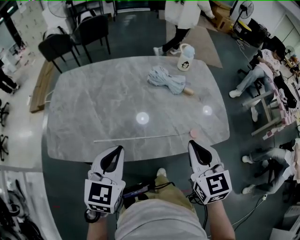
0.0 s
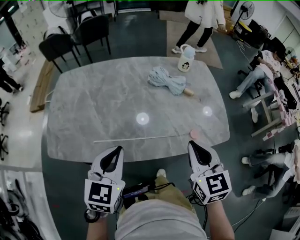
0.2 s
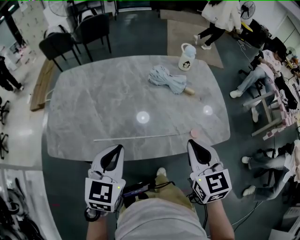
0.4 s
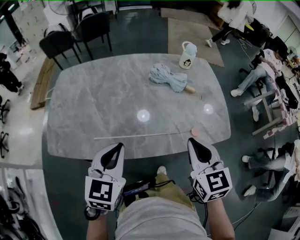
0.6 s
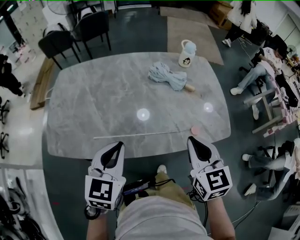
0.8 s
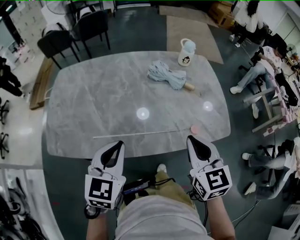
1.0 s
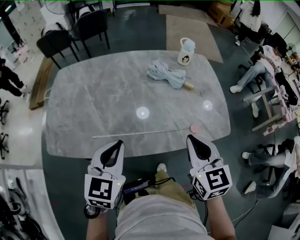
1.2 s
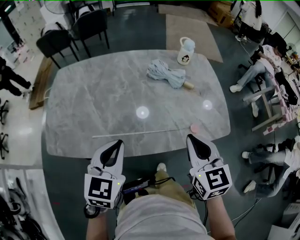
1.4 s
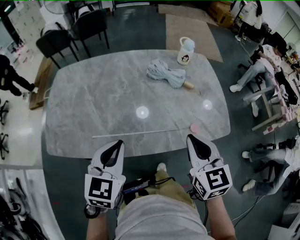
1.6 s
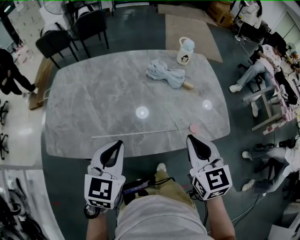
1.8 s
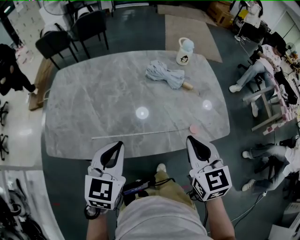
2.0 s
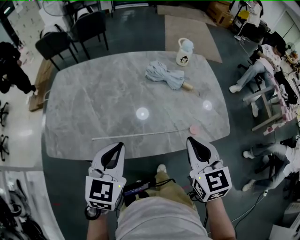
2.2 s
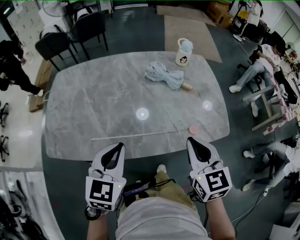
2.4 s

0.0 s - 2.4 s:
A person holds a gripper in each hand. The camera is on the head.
0.0 s - 1.2 s: Both grippers stay about where they are.
1.2 s - 2.4 s: The two grippers keep their place.

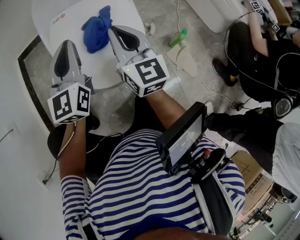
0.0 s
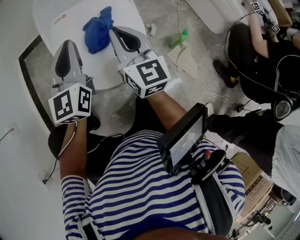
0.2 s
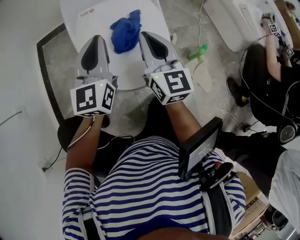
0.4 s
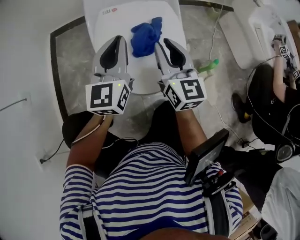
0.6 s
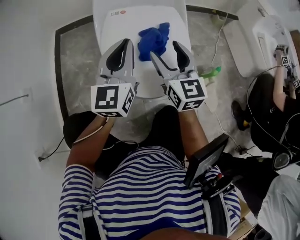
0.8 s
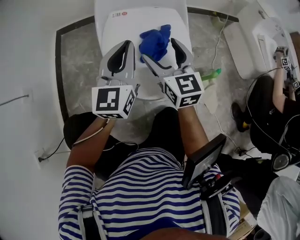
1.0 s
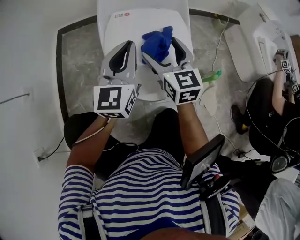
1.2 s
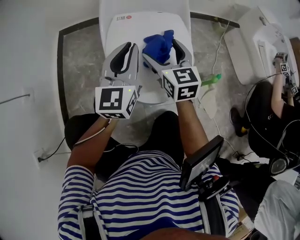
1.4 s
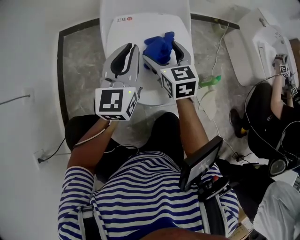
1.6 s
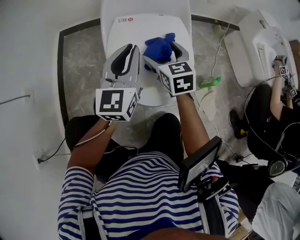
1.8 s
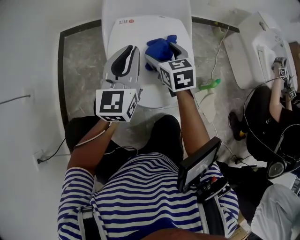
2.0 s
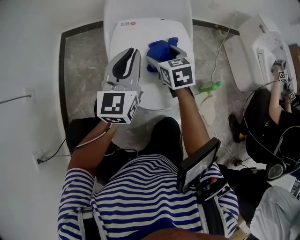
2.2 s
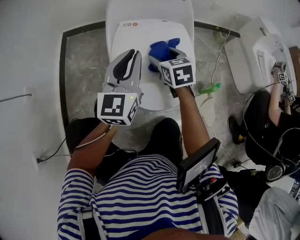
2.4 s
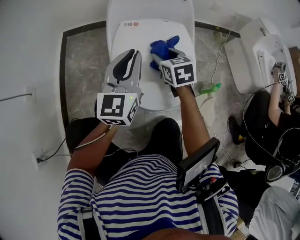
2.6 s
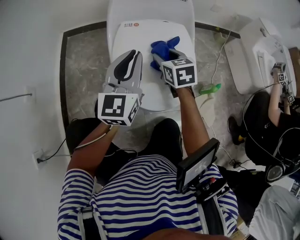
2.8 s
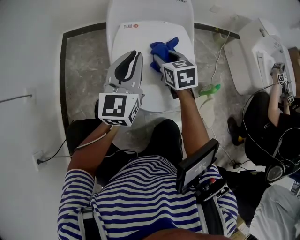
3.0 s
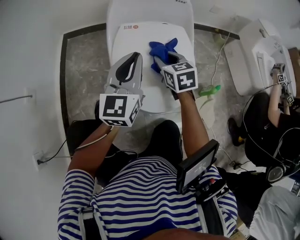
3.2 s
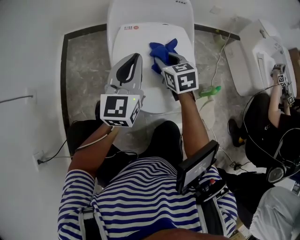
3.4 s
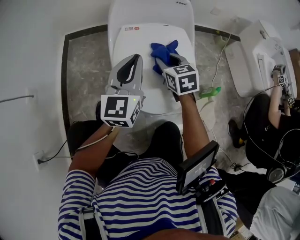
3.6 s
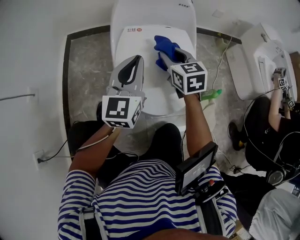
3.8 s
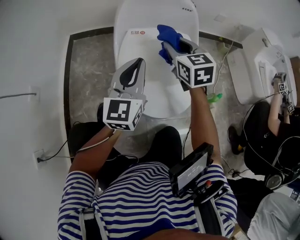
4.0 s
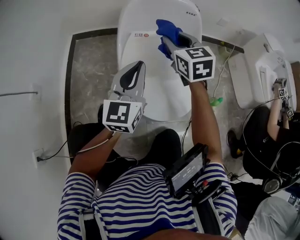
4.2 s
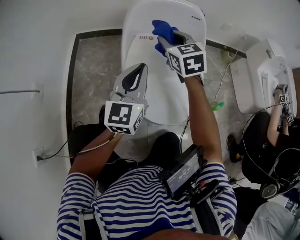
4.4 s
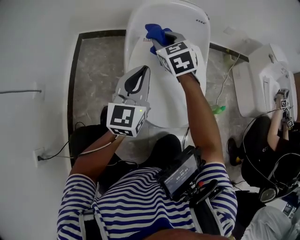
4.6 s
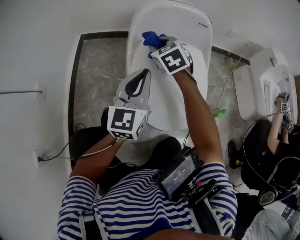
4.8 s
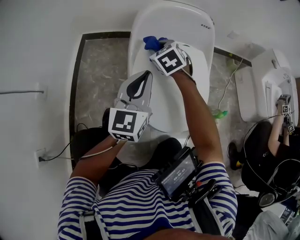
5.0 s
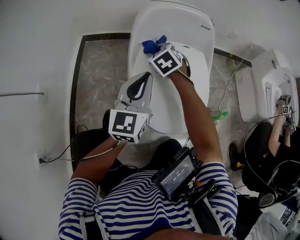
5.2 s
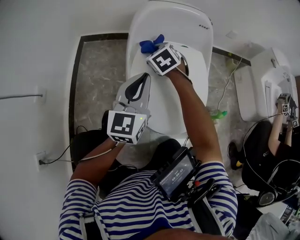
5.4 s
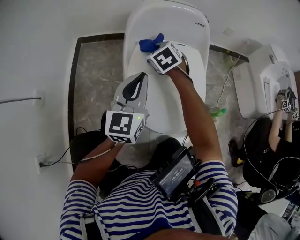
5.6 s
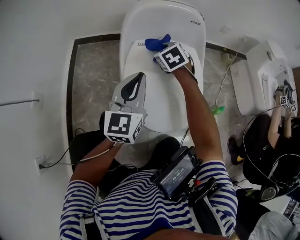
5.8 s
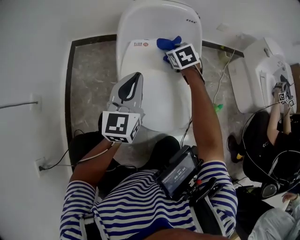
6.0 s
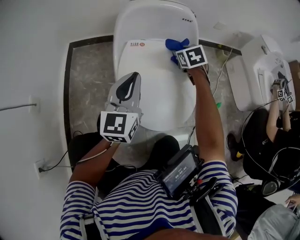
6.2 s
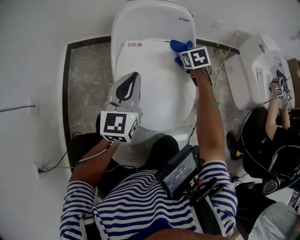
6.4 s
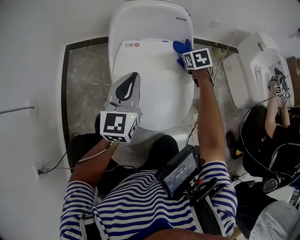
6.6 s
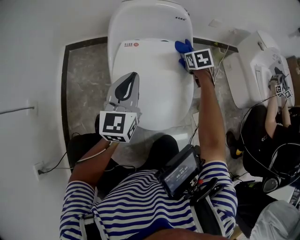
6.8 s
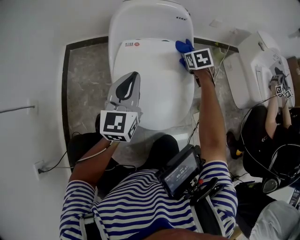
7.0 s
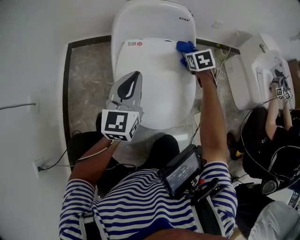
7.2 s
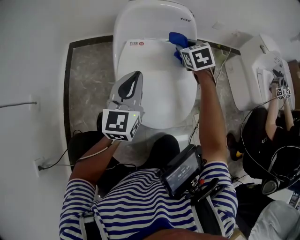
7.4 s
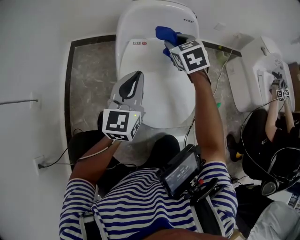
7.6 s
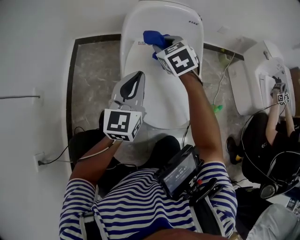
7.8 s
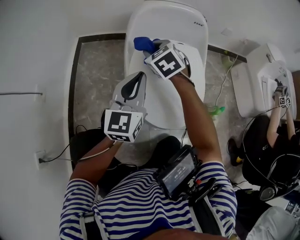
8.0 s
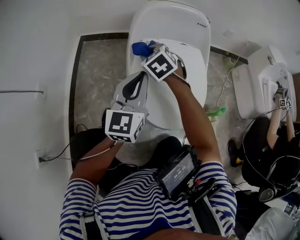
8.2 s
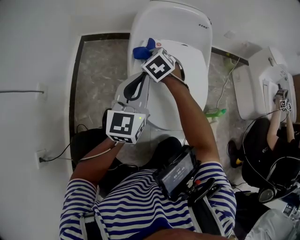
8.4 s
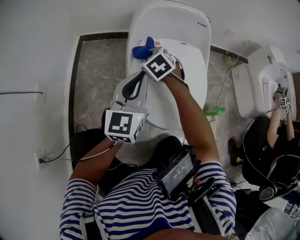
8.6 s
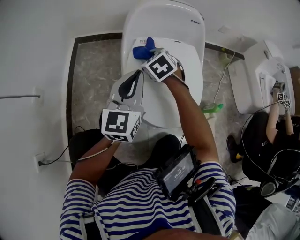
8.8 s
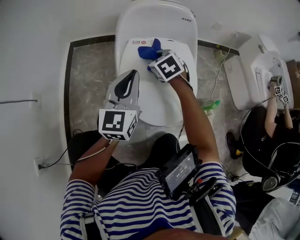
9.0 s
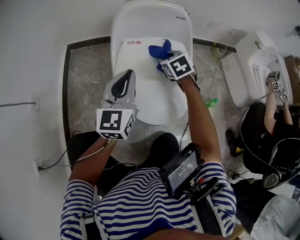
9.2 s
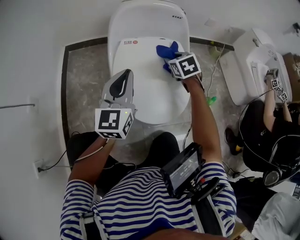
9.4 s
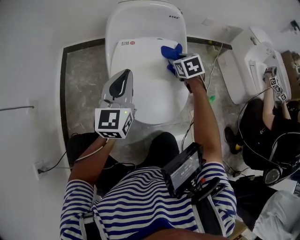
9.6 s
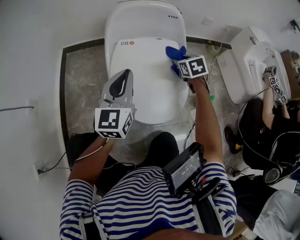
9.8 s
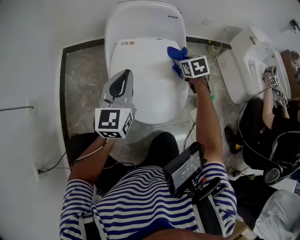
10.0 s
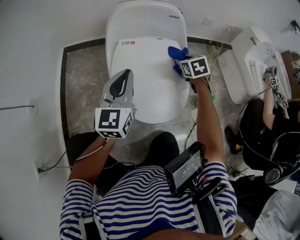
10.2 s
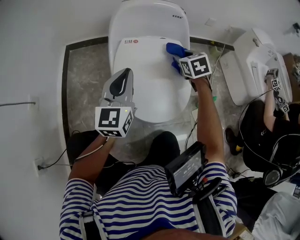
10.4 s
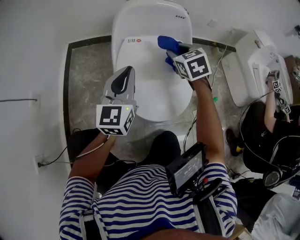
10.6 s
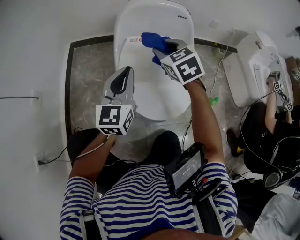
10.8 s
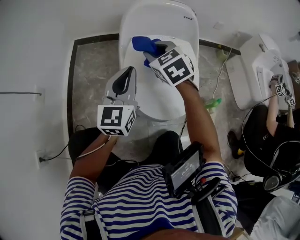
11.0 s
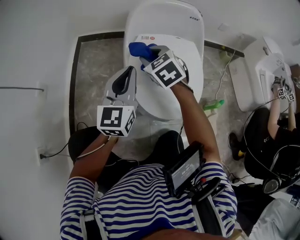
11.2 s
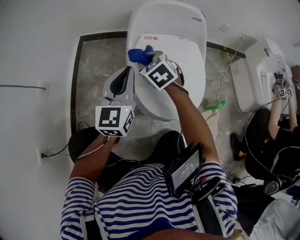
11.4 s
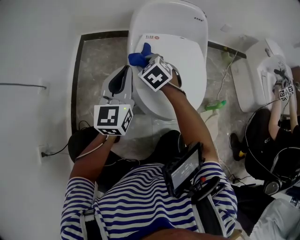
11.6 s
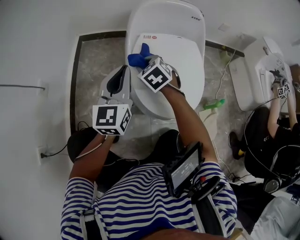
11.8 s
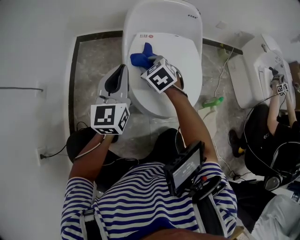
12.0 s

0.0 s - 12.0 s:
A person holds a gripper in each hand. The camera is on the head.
0.0 s - 1.6 s: The right gripper heads forward and to the left, covering some 10 cm, changes its angle by approximately 30 degrees, and opens.
1.6 s - 3.0 s: The right gripper closes its fingers.
3.0 s - 4.4 s: The right gripper travels upward, forward and to the left by some 15 cm.
4.4 s - 6.0 s: The right gripper goes approximately 15 cm downward and to the right, and changes its angle by approximately 20 degrees.
6.0 s - 7.6 s: The right gripper travels upward by approximately 10 cm, and goes to the right and returns, roughly 15 cm each way.
7.6 s - 9.0 s: The right gripper goes approximately 10 cm downward and to the left.
9.0 s - 10.4 s: The right gripper shifts roughly 15 cm to the right.
10.4 s - 12.0 s: The left gripper goes about 5 cm to the left. Meanwhile the right gripper shifts about 20 cm to the left, and rotates some 20 degrees.

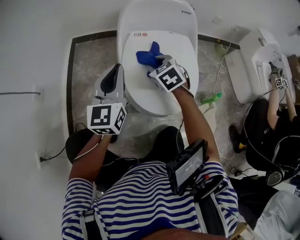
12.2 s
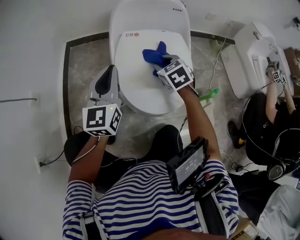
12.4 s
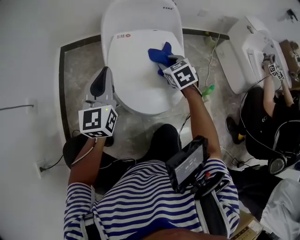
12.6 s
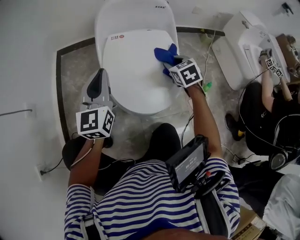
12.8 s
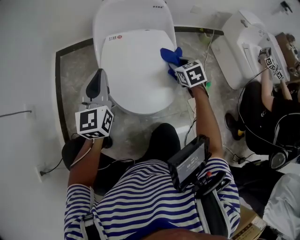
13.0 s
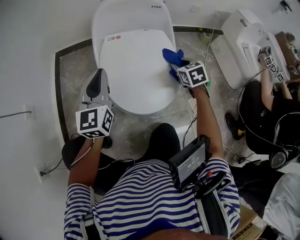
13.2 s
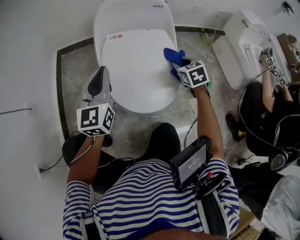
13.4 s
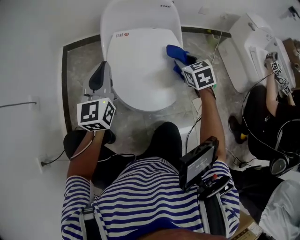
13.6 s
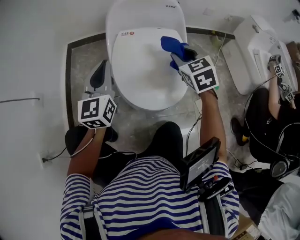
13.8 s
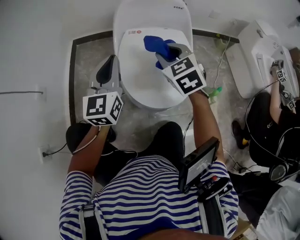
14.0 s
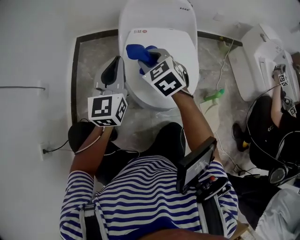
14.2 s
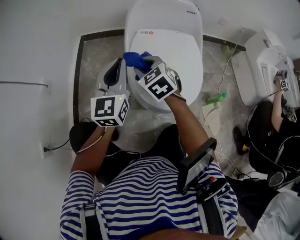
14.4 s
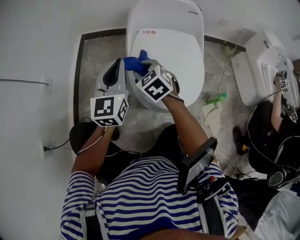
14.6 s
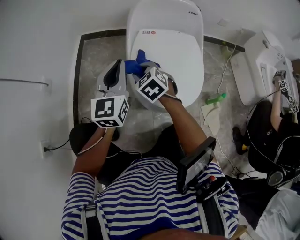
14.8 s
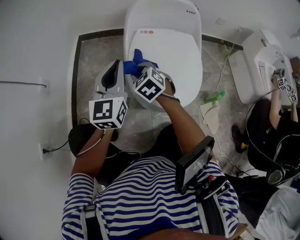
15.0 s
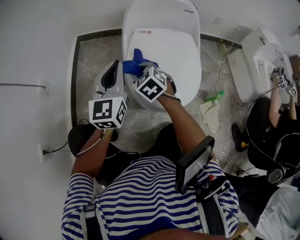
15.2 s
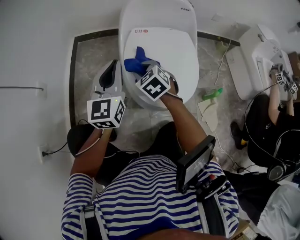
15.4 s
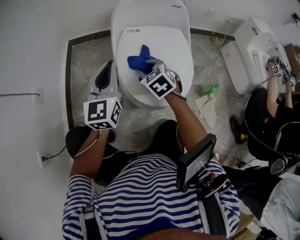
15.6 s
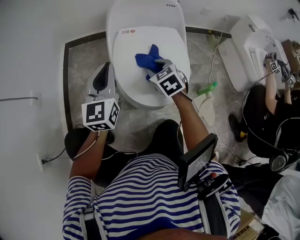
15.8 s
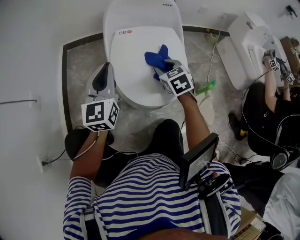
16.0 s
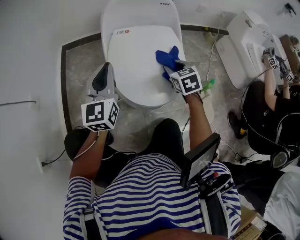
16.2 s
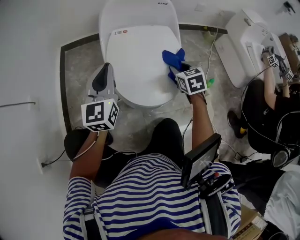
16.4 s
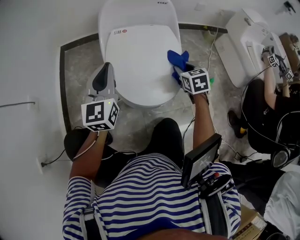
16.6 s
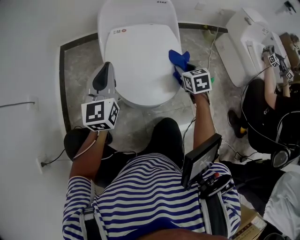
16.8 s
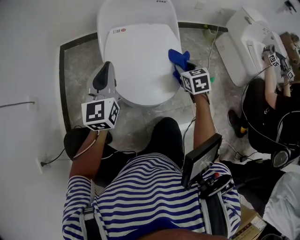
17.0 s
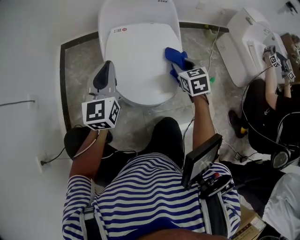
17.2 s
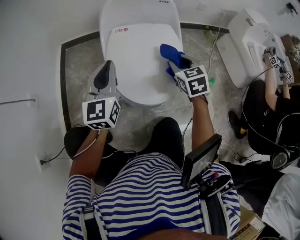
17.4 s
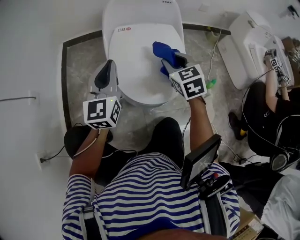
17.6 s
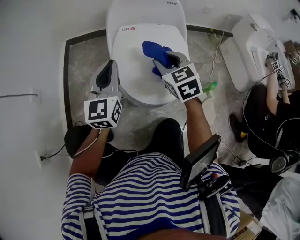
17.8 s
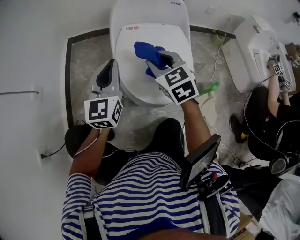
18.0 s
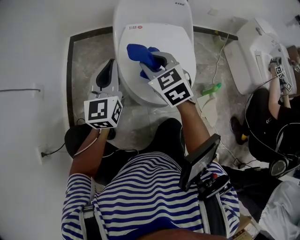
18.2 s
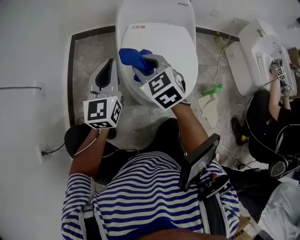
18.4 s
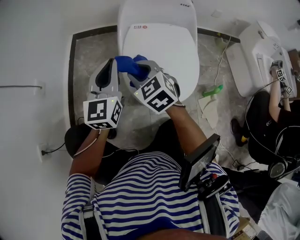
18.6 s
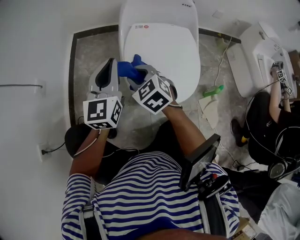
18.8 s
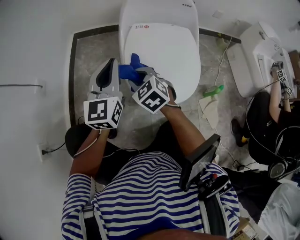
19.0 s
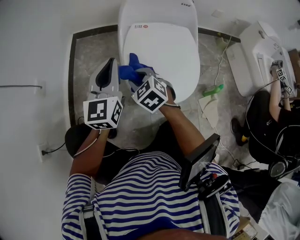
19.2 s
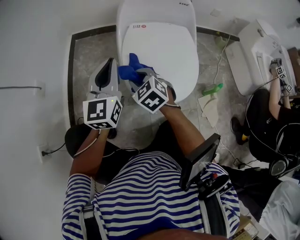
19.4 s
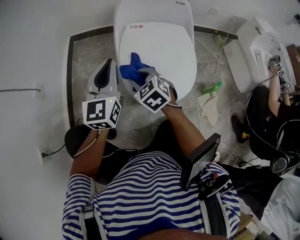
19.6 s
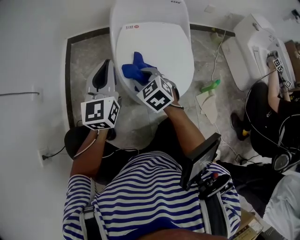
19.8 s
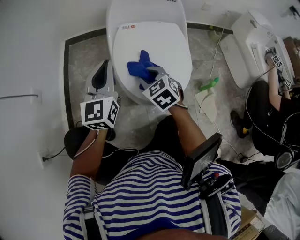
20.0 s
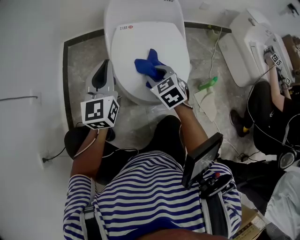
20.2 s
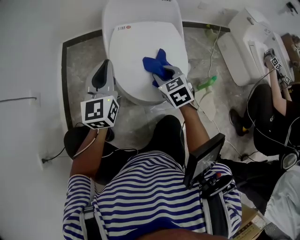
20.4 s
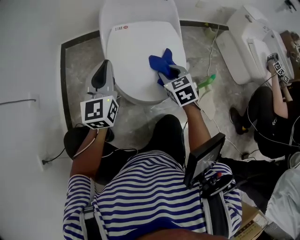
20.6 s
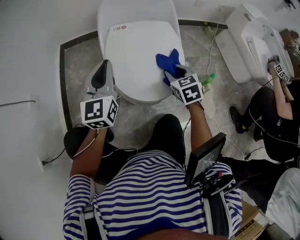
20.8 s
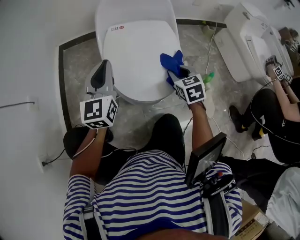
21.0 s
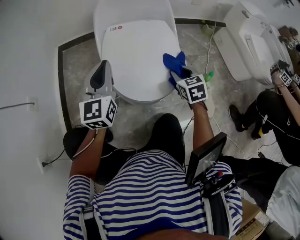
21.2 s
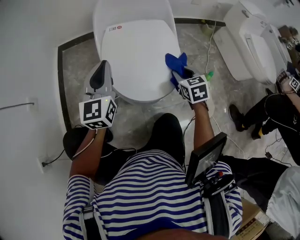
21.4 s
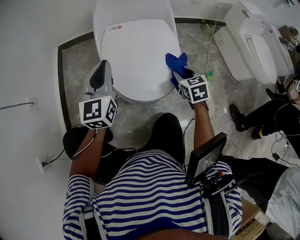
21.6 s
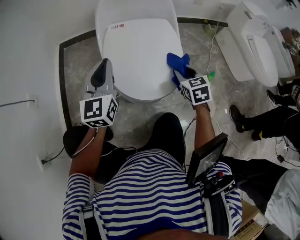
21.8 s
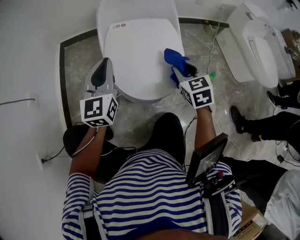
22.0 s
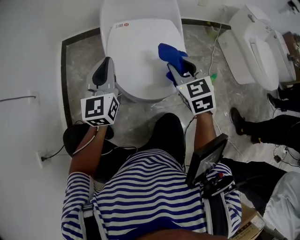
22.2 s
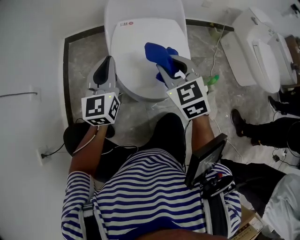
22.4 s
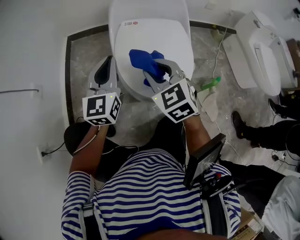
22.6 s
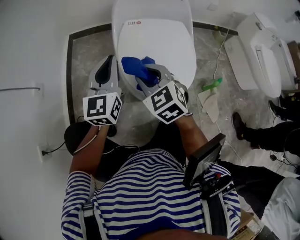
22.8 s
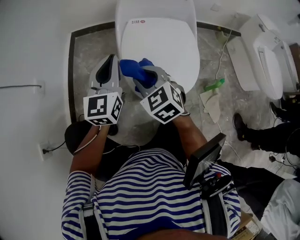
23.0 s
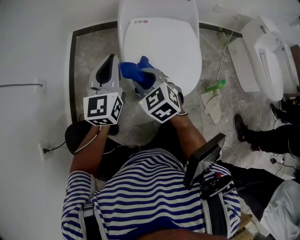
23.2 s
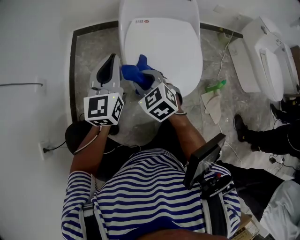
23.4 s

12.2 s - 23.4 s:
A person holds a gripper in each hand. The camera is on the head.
12.2 s - 13.8 s: The right gripper heads to the right and upward, covering about 15 cm.
13.8 s - 15.4 s: The right gripper heads to the left and downward, covering roughly 25 cm.
15.4 s - 17.0 s: The right gripper travels to the right by about 25 cm, and rotates roughly 30 degrees; the left gripper goes roughly 5 cm to the right.
17.0 s - 18.6 s: The left gripper heads to the left, covering approximately 5 cm; the right gripper moves to the left, about 30 cm, and turns by about 40 degrees.
18.6 s - 20.2 s: The right gripper heads to the right and downward, covering some 15 cm.
20.2 s - 21.8 s: The right gripper moves to the right, some 15 cm.
21.8 s - 23.4 s: The left gripper changes place by approximately 5 cm. The right gripper shifts roughly 25 cm to the left, and turns by about 30 degrees.
